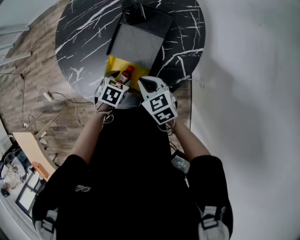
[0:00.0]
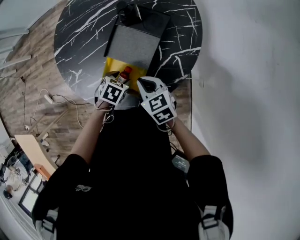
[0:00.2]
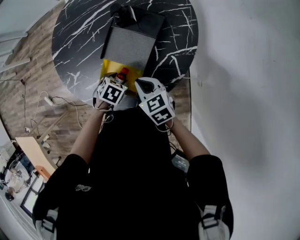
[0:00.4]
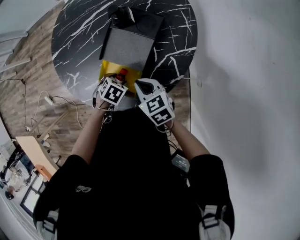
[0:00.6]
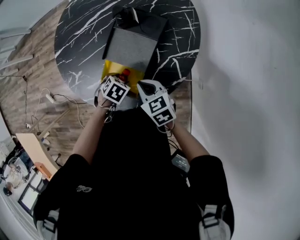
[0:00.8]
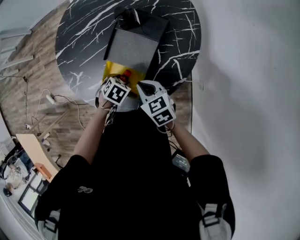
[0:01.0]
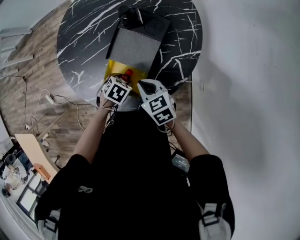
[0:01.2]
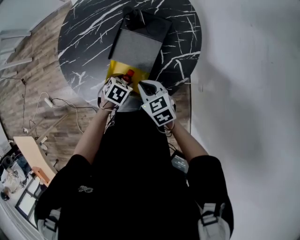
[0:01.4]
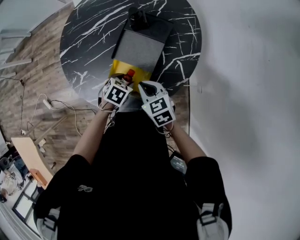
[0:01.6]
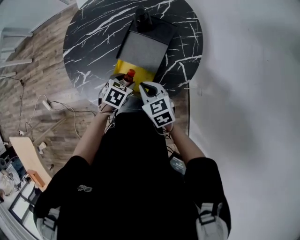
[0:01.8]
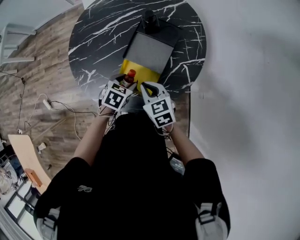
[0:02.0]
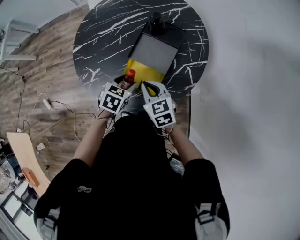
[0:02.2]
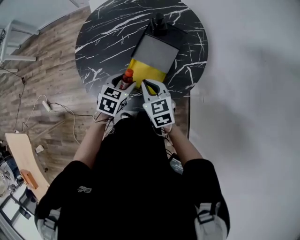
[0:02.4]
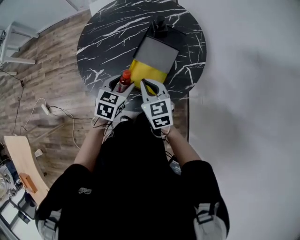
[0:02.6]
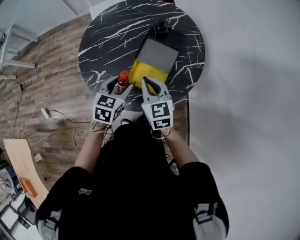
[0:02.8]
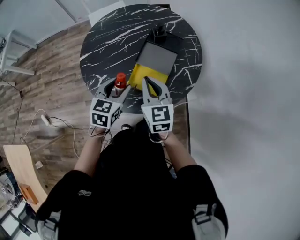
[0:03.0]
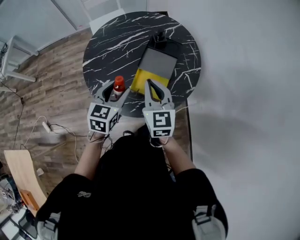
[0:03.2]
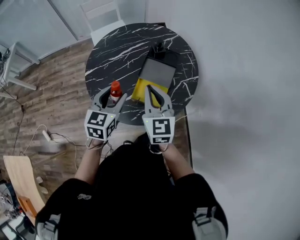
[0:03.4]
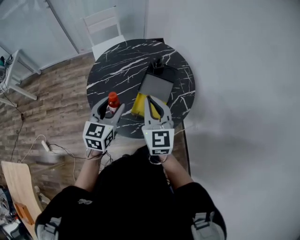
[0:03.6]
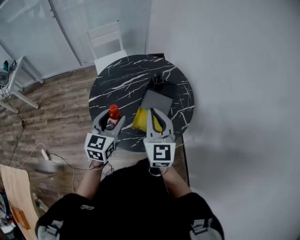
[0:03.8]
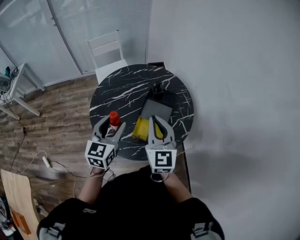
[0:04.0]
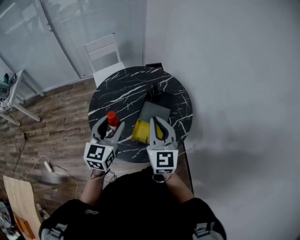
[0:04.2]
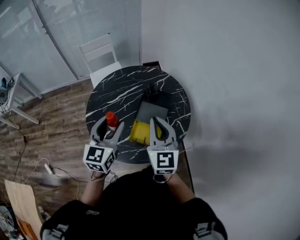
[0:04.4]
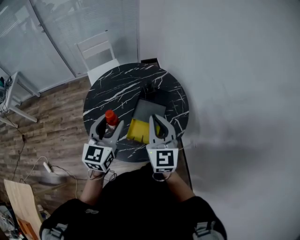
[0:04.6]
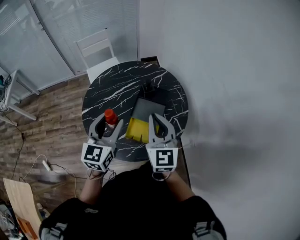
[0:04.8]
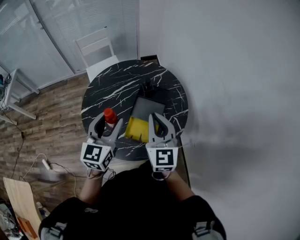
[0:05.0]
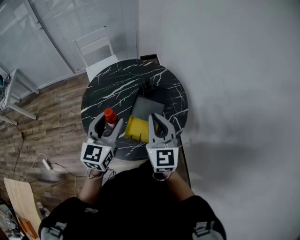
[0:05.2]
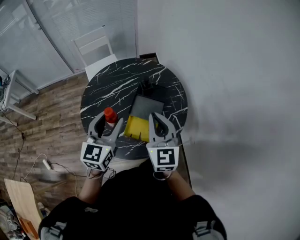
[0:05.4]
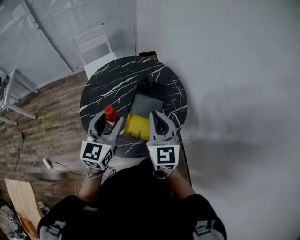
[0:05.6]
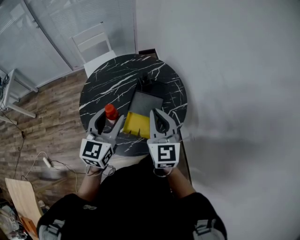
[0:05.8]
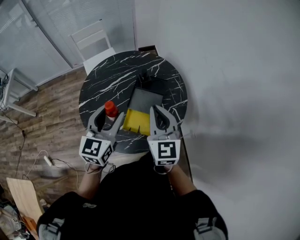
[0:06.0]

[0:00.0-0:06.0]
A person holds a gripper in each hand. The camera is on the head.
0.0 to 1.6 s: There are only small adjustments of the grippers.
1.6 to 3.0 s: Both grippers travel together upward and to the left, some 20 cm. The right gripper turns by some 30 degrees. The left gripper tilts its fingers some 40 degrees upward.
3.0 to 4.4 s: Both grippers move upward, approximately 15 cm. The right gripper rotates roughly 20 degrees. Meanwhile the left gripper turns by about 30 degrees.
4.4 to 6.0 s: The grippers stay close to where they were, moving slightly.

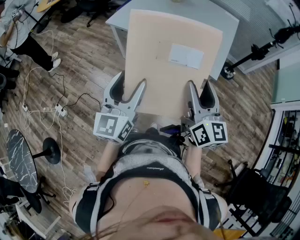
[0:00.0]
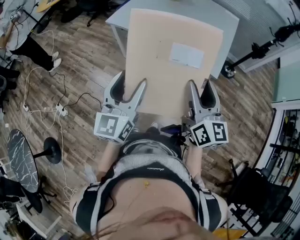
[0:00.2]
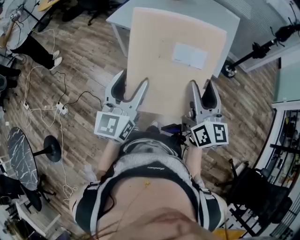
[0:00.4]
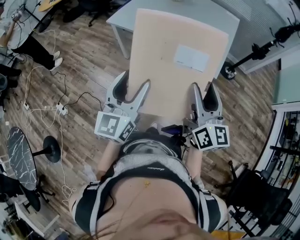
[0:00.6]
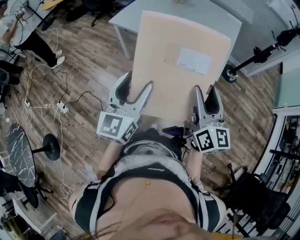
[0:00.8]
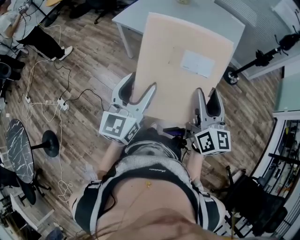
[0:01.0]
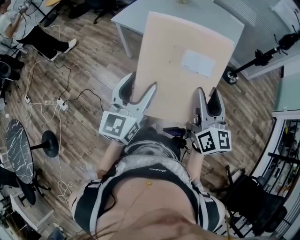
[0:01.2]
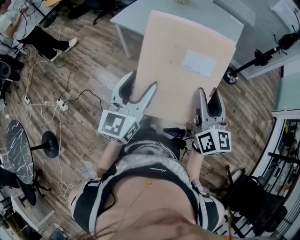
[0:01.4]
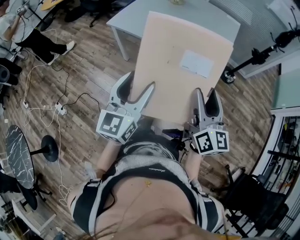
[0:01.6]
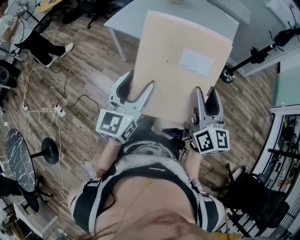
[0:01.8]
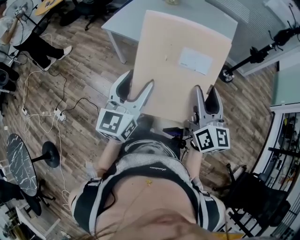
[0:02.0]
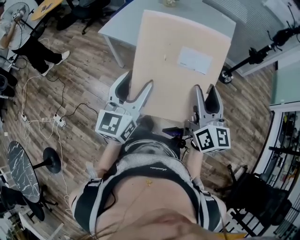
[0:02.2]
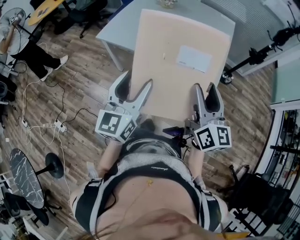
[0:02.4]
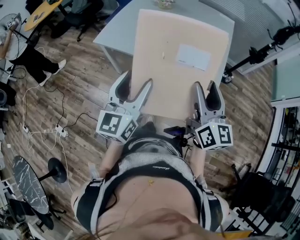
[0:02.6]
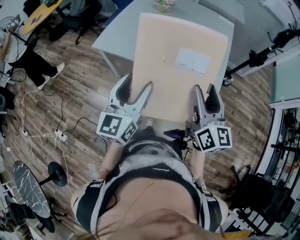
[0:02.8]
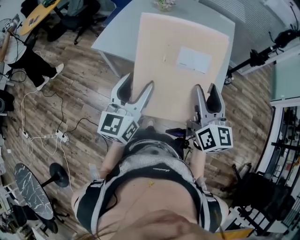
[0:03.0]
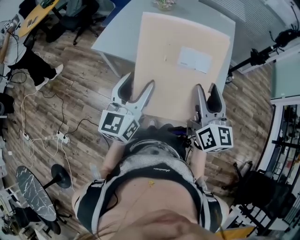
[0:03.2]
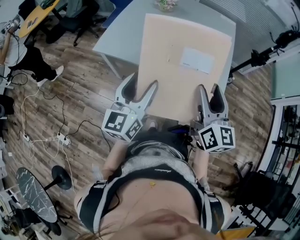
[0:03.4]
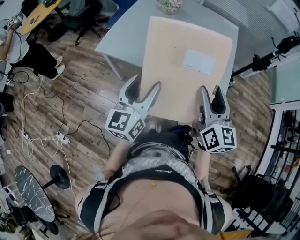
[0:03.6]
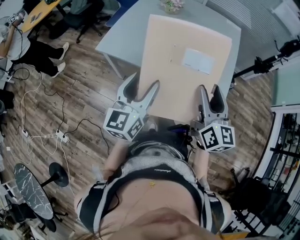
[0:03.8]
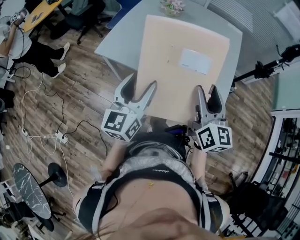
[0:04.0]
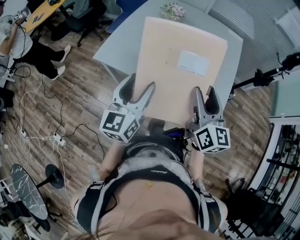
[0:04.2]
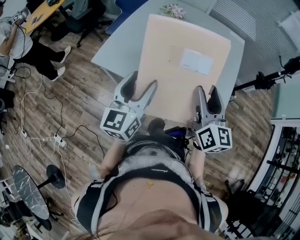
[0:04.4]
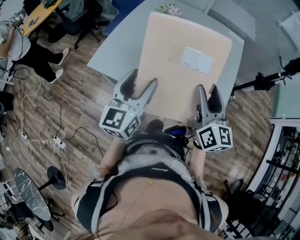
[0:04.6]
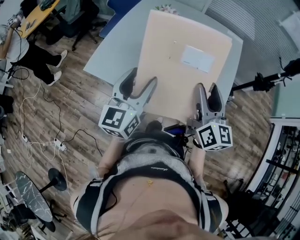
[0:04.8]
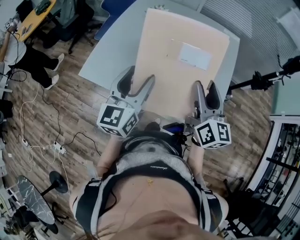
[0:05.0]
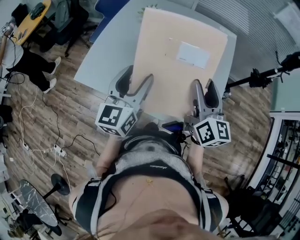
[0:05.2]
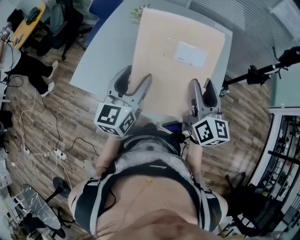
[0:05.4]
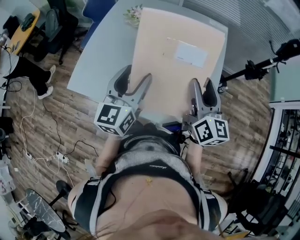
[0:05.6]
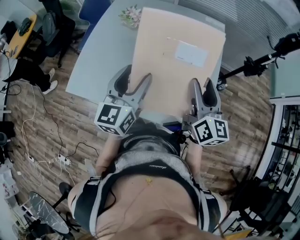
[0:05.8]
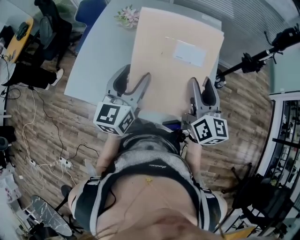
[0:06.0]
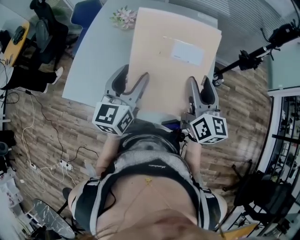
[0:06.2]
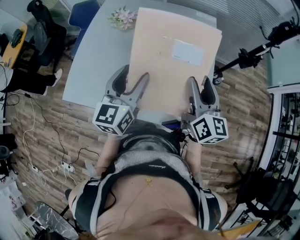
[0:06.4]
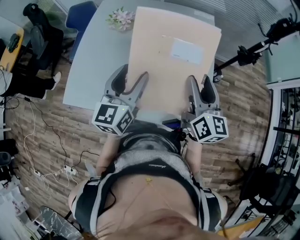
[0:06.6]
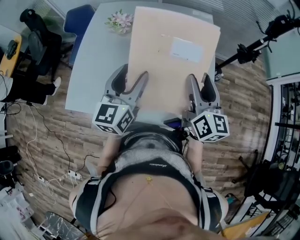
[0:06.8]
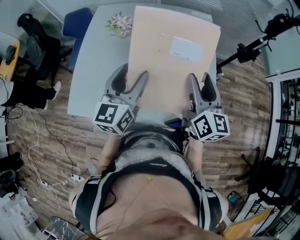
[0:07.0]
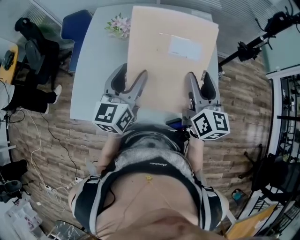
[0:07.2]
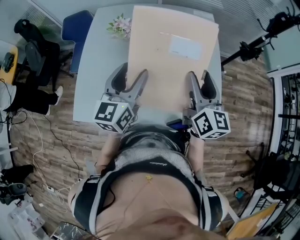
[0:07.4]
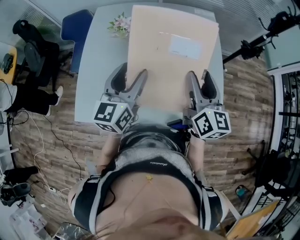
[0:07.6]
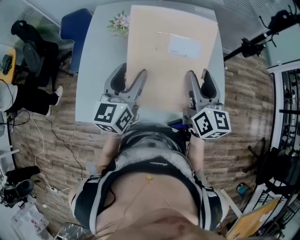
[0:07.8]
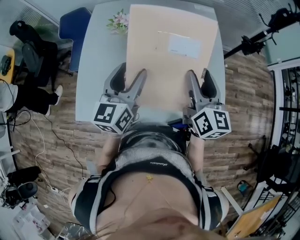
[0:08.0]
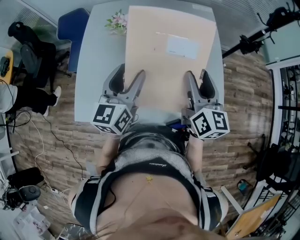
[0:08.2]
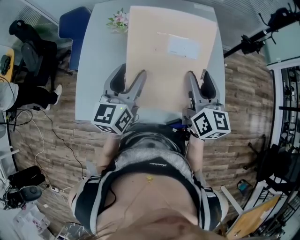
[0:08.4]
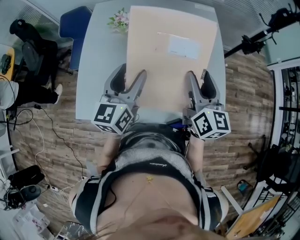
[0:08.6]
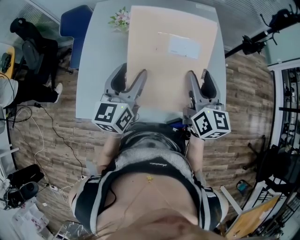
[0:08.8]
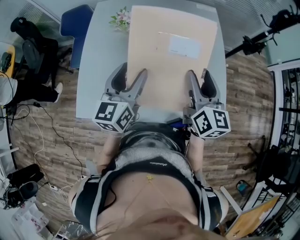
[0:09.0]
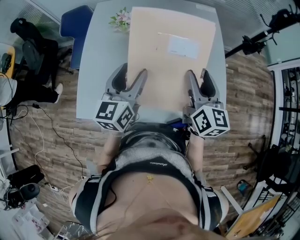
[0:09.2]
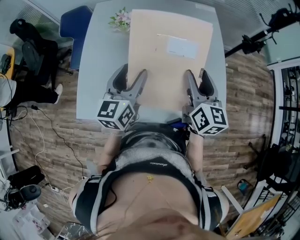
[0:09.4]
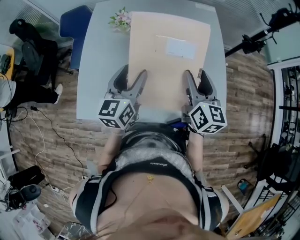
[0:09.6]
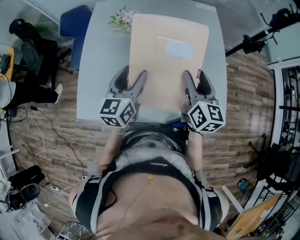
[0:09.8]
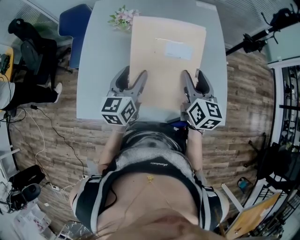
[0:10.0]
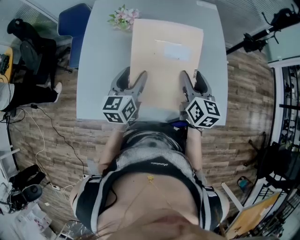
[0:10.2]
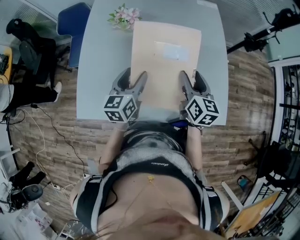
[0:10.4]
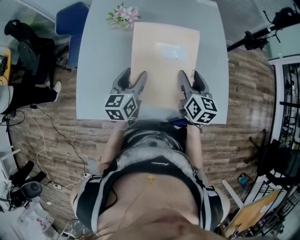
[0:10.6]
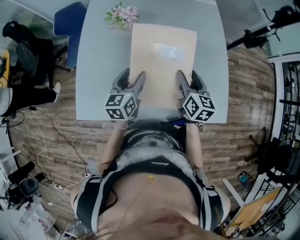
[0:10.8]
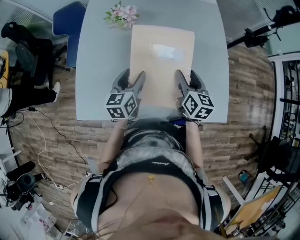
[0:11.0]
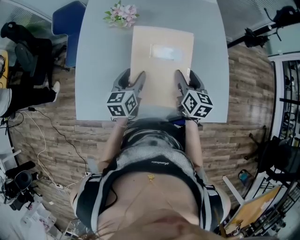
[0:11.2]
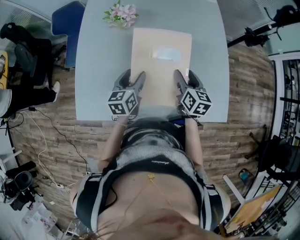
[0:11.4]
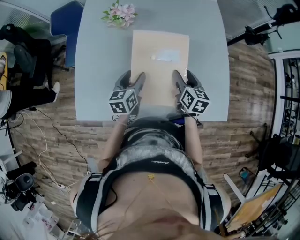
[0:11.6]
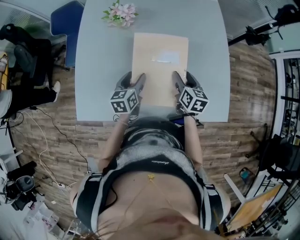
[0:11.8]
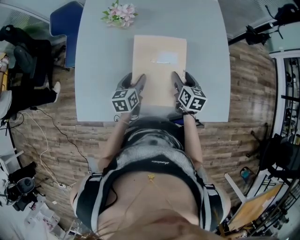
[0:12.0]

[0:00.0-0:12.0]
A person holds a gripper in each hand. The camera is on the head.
0.0 to 1.6 s: The grippers both shift to the right by approximately 5 cm.
1.6 to 3.0 s: The grippers both shift forward by some 20 cm.
3.0 to 4.4 s: Both grippers move forward, approximately 15 cm.
4.4 to 6.0 s: Both grippers travel together forward and to the right, roughly 20 cm.
6.0 to 7.6 s: The left gripper moves to the left and forward, some 15 cm. The right gripper moves to the left, roughly 10 cm.
7.6 to 9.0 s: There are only small adjustments of the grippers.
9.0 to 10.4 s: The grippers both shift downward by about 10 cm.
10.4 to 12.0 s: Both grippers move downward, roughly 15 cm.

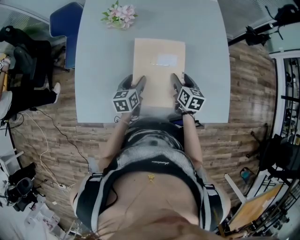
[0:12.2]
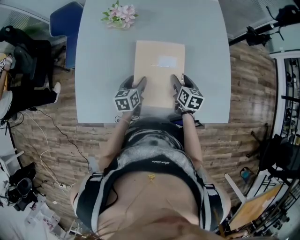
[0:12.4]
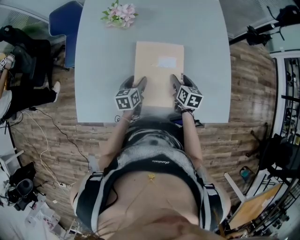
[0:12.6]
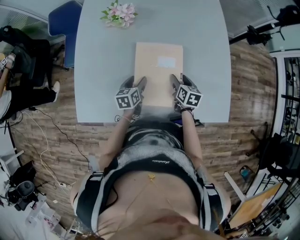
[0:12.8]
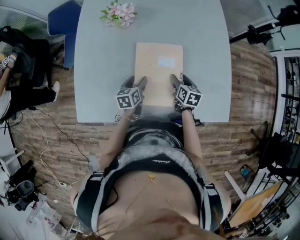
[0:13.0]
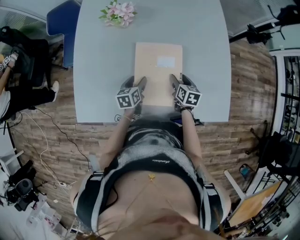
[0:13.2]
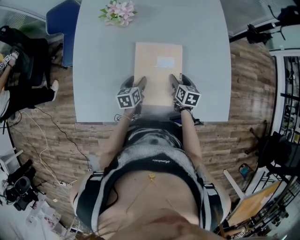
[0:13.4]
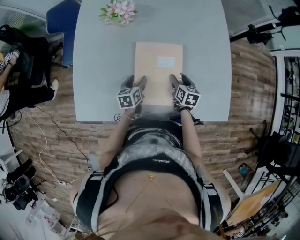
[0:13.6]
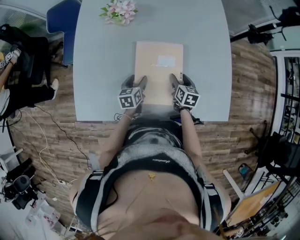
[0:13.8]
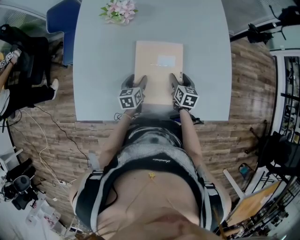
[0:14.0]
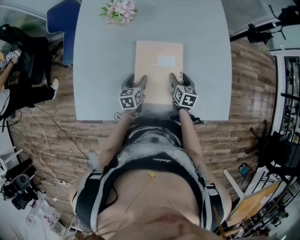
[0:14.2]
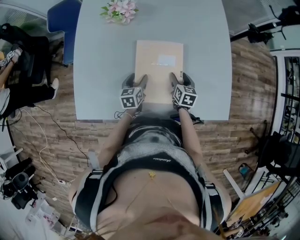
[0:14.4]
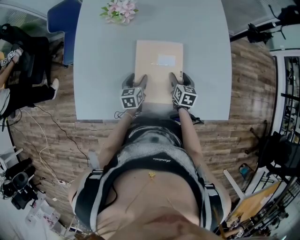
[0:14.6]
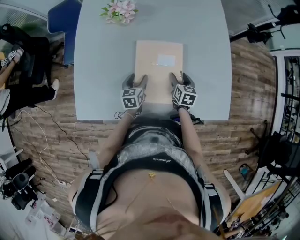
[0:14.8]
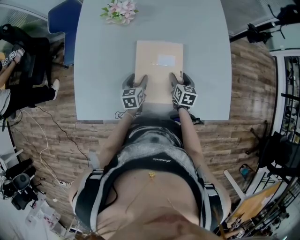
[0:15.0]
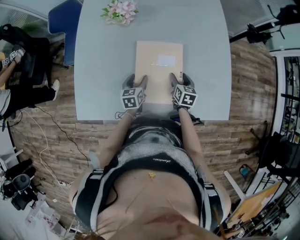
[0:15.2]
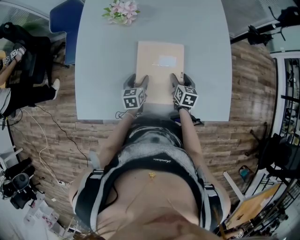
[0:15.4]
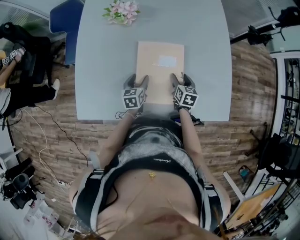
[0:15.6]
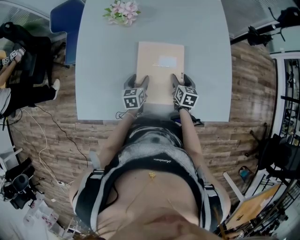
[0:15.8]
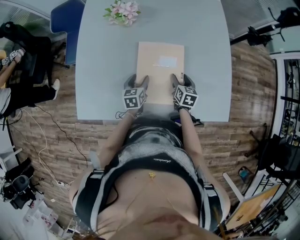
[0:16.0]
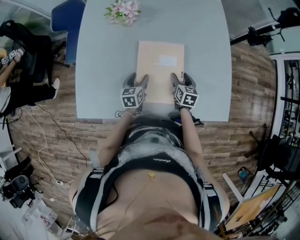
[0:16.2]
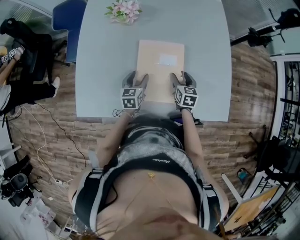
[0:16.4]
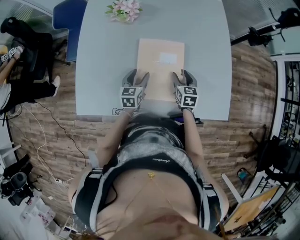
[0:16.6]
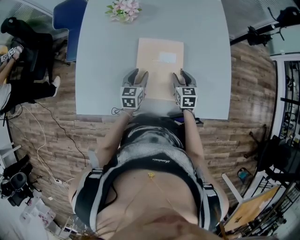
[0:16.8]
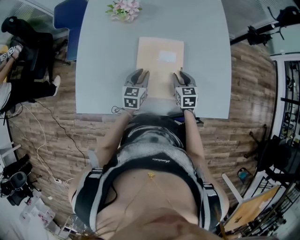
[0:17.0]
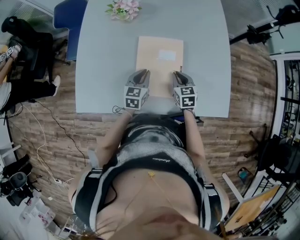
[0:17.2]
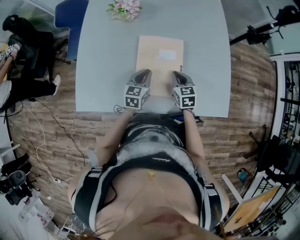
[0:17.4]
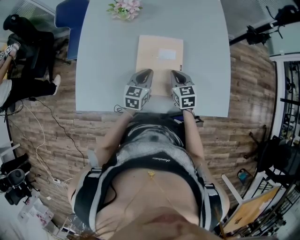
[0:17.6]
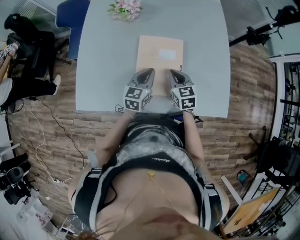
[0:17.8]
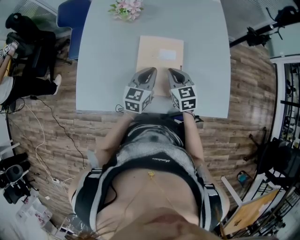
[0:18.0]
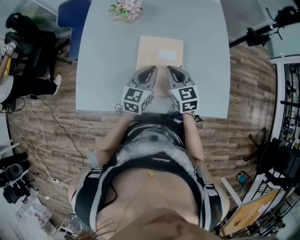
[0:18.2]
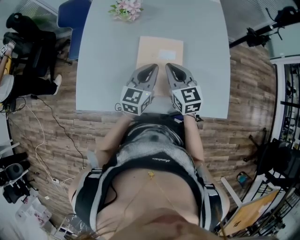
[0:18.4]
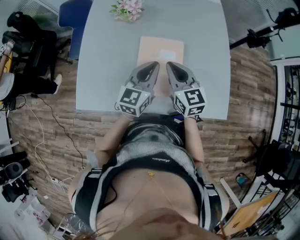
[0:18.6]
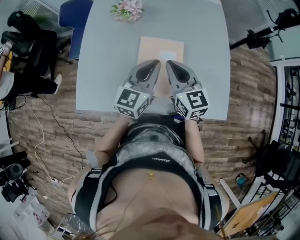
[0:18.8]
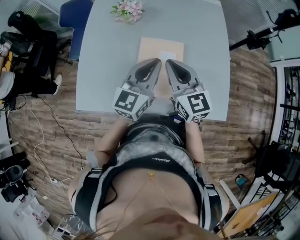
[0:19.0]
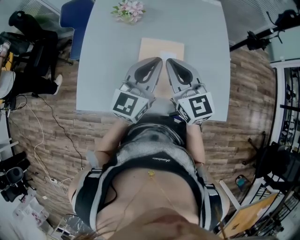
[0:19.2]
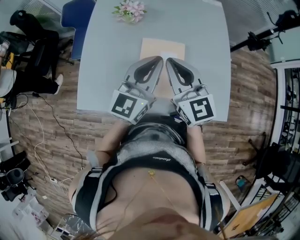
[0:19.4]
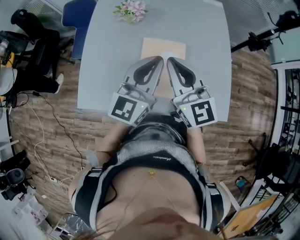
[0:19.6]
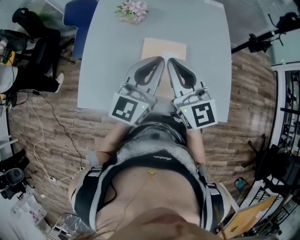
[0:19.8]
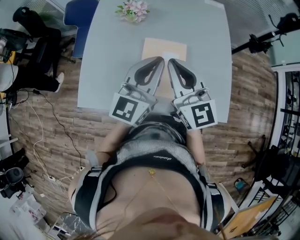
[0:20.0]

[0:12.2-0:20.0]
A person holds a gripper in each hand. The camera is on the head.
12.2 to 13.8 s: The grippers both shift downward by approximately 5 cm.
13.8 to 15.4 s: The grippers move only a little.
15.4 to 16.8 s: The left gripper moves some 5 cm.
16.8 to 18.4 s: The left gripper moves upward and to the right, approximately 15 cm, turns by approximately 20 degrees, and closes its fingers. Meanwhile the right gripper goes about 20 cm upward and to the left, turns by roughly 20 degrees, and closes its fingers.
18.4 to 20.0 s: Both grippers travel together upward, about 15 cm. The right gripper swivels roughly 20 degrees.
